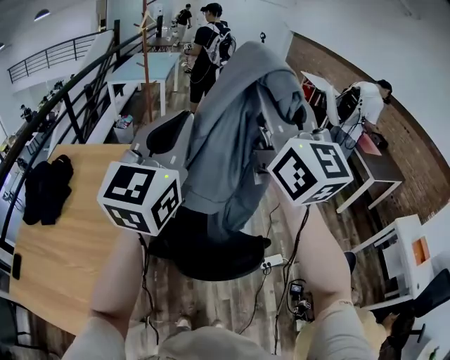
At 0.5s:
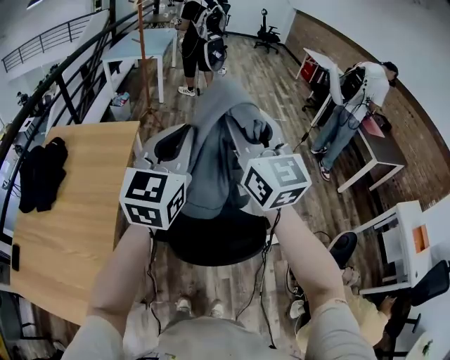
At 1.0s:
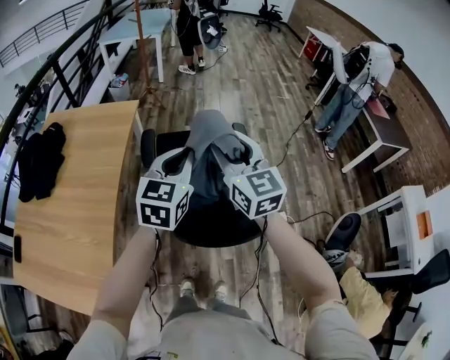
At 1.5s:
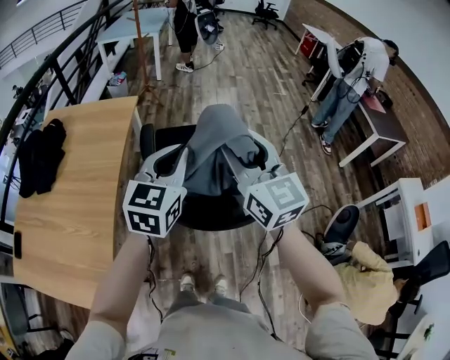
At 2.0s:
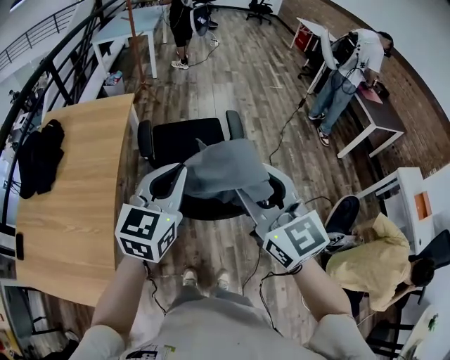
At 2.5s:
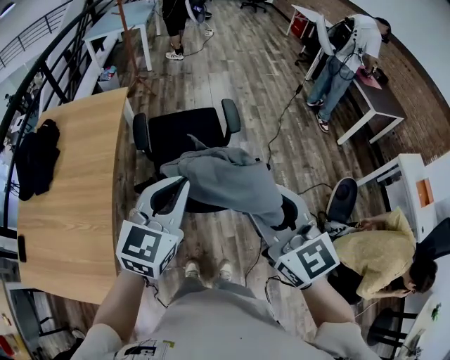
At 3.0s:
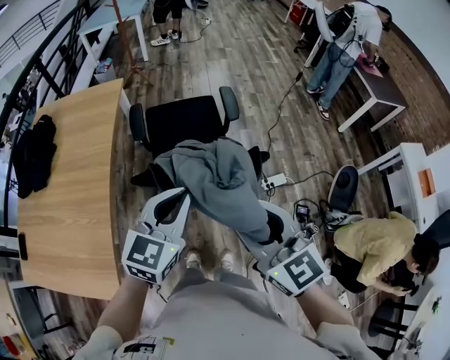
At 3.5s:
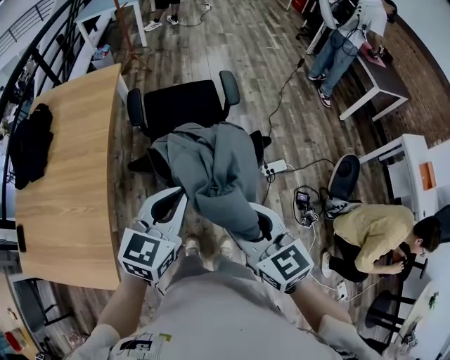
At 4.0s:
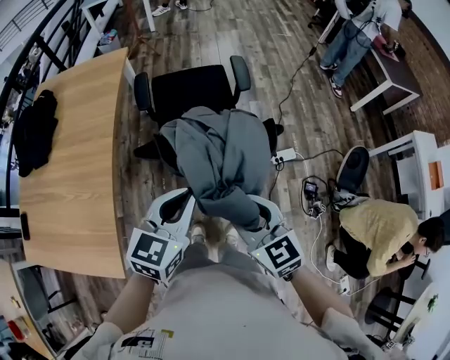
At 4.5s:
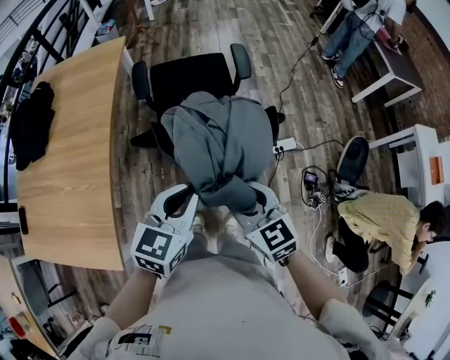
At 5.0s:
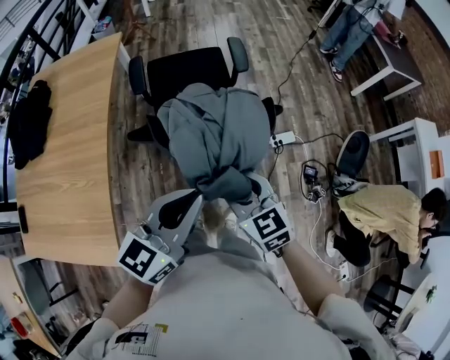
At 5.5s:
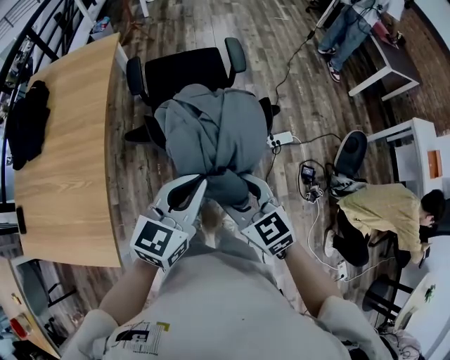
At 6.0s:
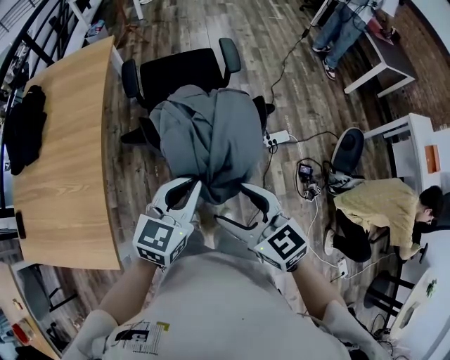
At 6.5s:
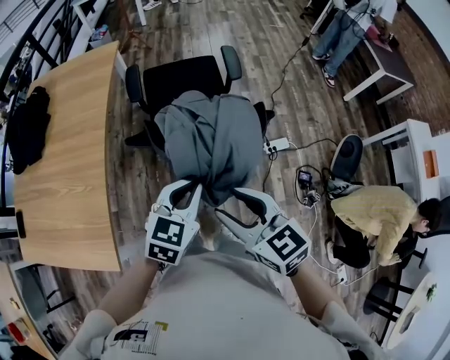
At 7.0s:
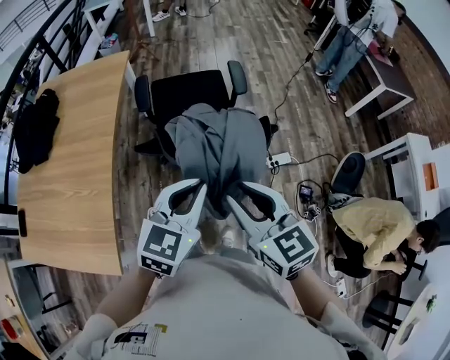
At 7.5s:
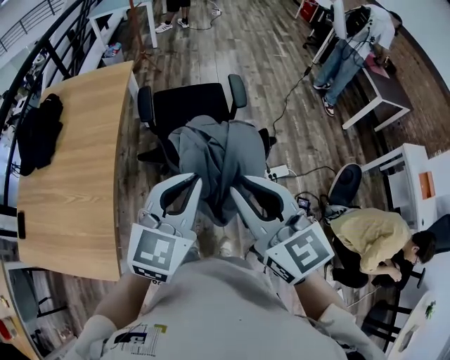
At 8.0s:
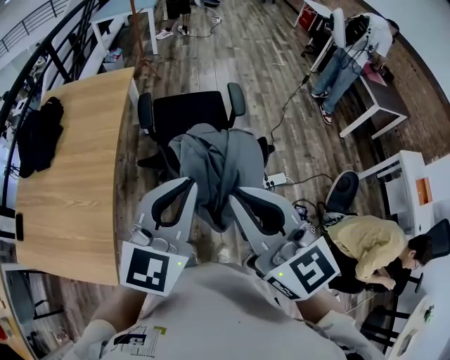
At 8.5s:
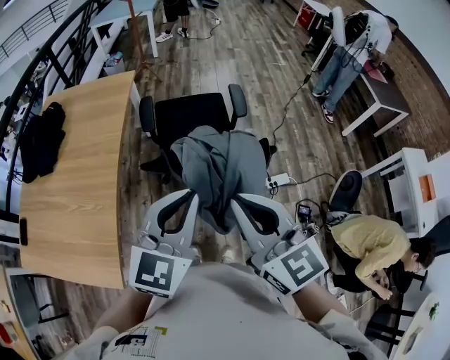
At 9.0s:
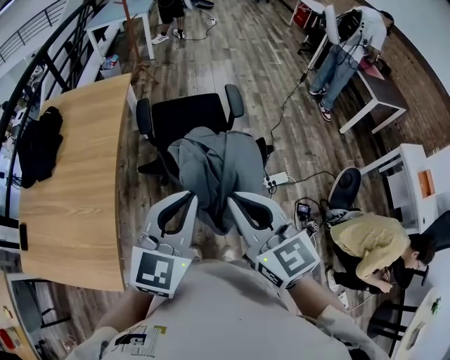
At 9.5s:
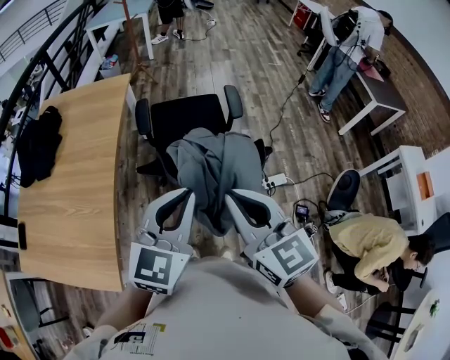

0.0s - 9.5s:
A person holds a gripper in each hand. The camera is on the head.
0.0s - 2.0s: Both grippers travel together downward and backward, approximately 30 cm. The left gripper changes its angle by approximately 30 degrees. Meanwhile the right gripper swivels about 30 degrees.
2.0s - 4.0s: The two grippers go roughly 20 cm downward and backward. The right gripper changes its angle by about 20 degrees.
4.0s - 5.5s: There are only small adjustments of the grippers.
5.5s - 7.5s: The left gripper is displaced upward by about 10 cm, while the right gripper travels upward by some 20 cm, and closes its fingers.
7.5s - 9.5s: The grippers move only a little.

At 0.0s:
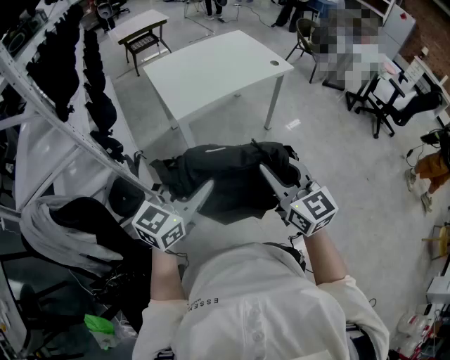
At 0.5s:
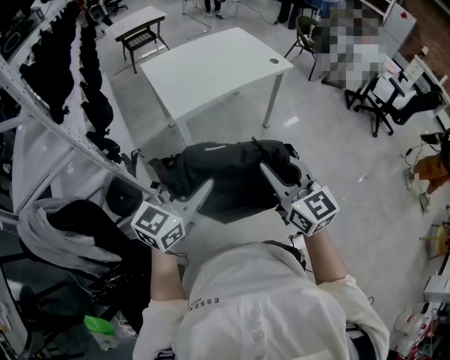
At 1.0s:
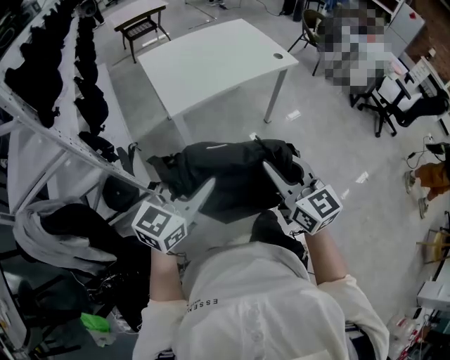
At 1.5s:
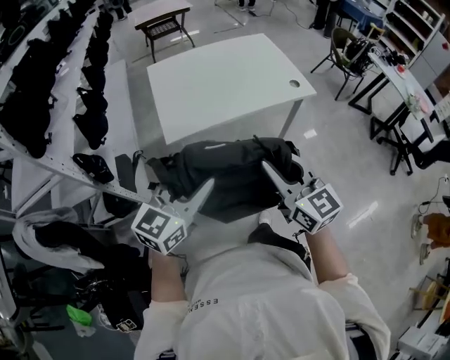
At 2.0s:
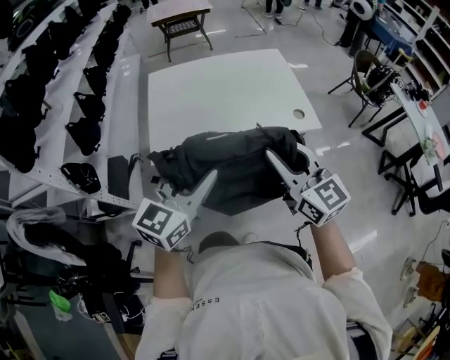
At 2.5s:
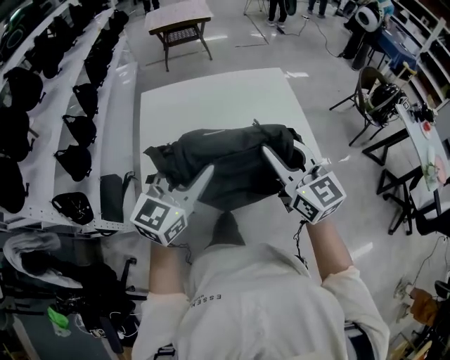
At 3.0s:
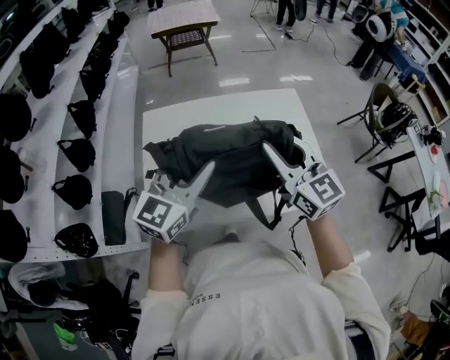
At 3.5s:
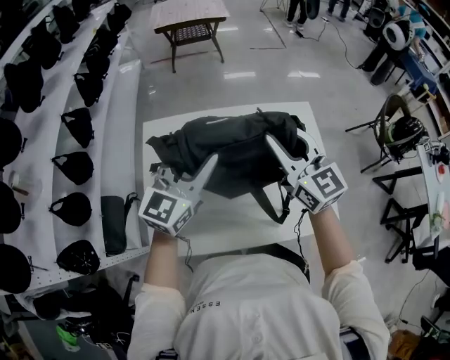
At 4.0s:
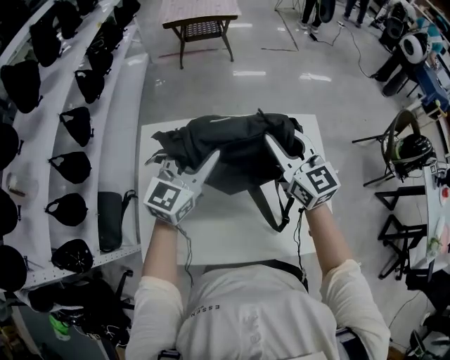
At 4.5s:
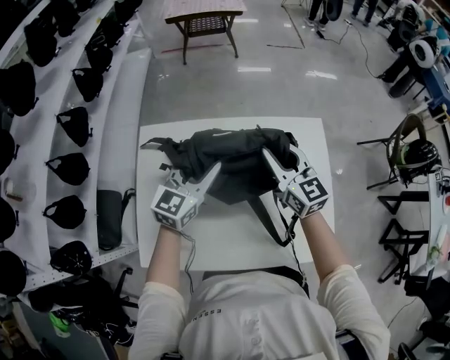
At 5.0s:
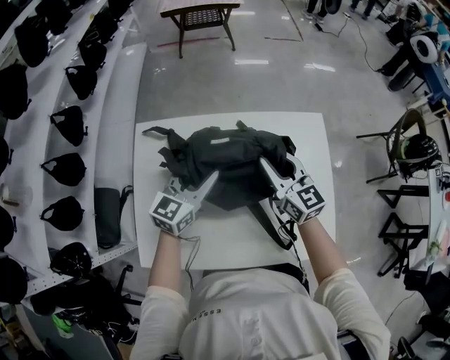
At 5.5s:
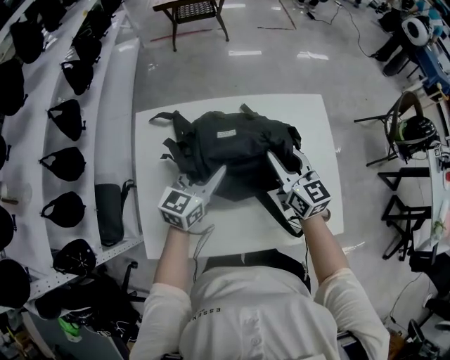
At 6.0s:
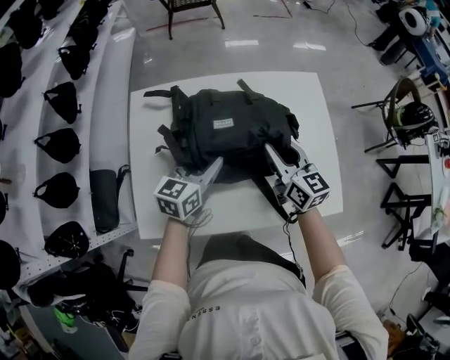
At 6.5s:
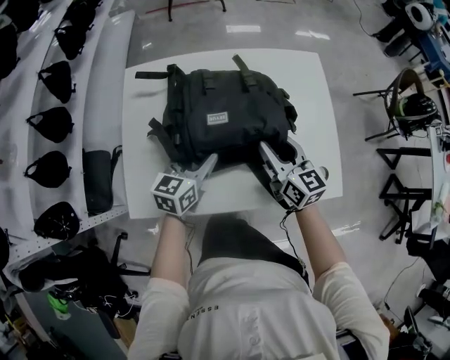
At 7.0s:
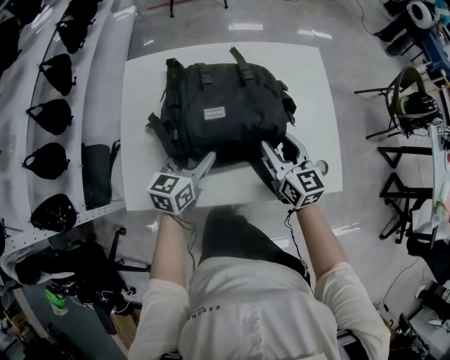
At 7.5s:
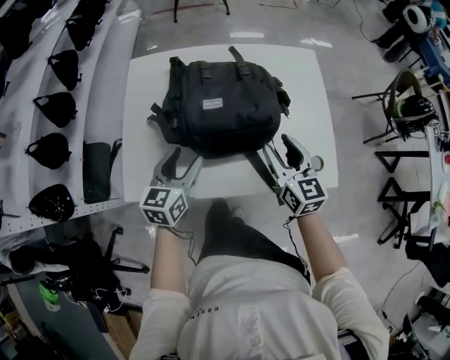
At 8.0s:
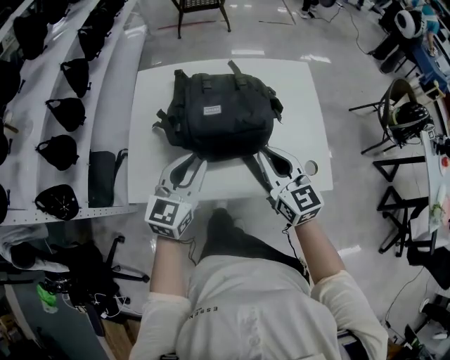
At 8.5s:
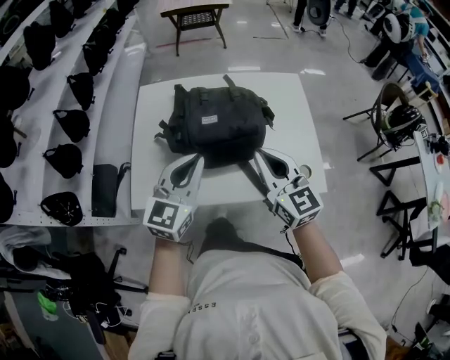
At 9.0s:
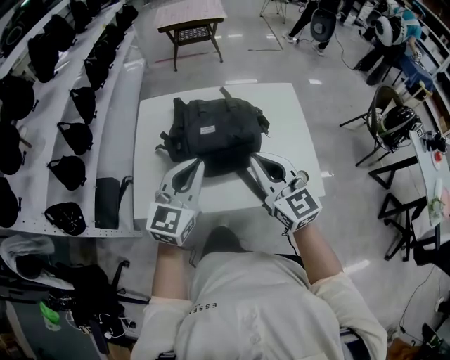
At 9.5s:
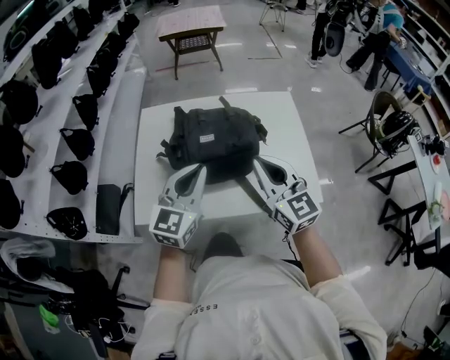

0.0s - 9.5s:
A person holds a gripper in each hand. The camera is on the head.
0.0s - 2.0s: The left gripper travels forward and to the right by some 35 cm, and changes its angle by some 20 degrees, while the right gripper is displaced forward by some 40 cm, and swivels roughly 20 degrees.
2.0s - 4.0s: Both grippers are carried forward, about 60 cm.
4.0s - 5.5s: The grippers both shift downward by some 15 cm.
5.5s - 7.5s: The grippers both shift backward by roughly 20 cm.
7.5s - 9.5s: Both grippers travel together upward, roughly 15 cm. The left gripper turns by some 30 degrees, and closes up. Meanwhile the right gripper closes its fingers.

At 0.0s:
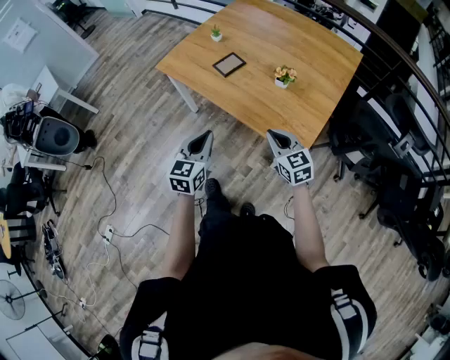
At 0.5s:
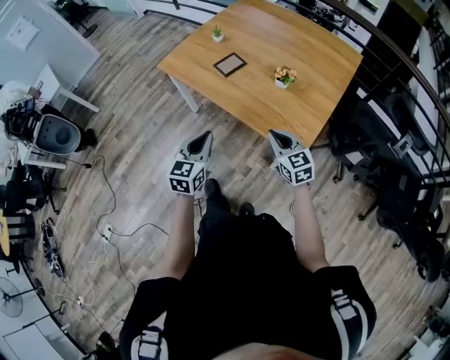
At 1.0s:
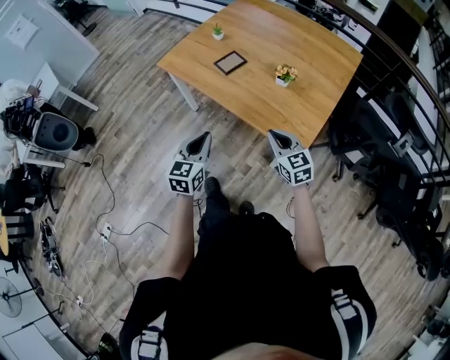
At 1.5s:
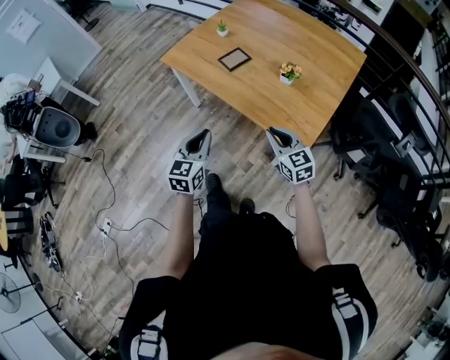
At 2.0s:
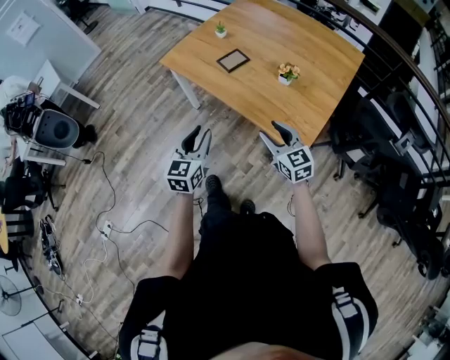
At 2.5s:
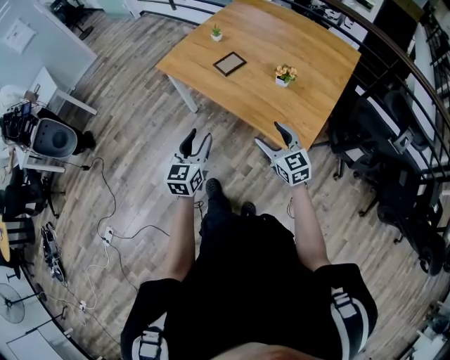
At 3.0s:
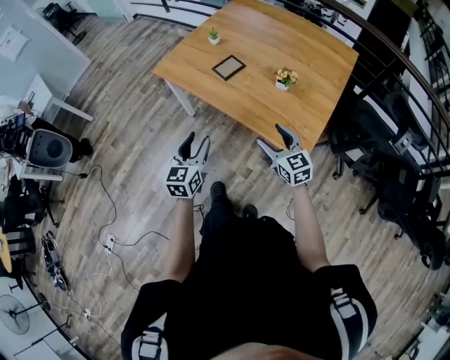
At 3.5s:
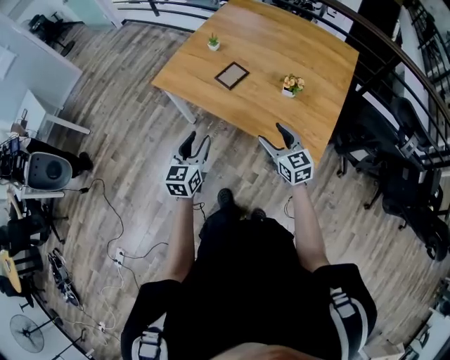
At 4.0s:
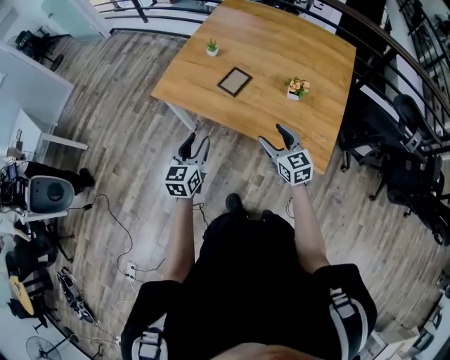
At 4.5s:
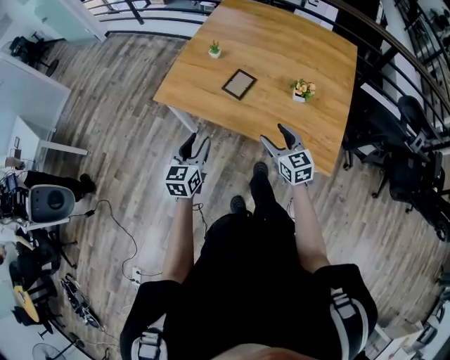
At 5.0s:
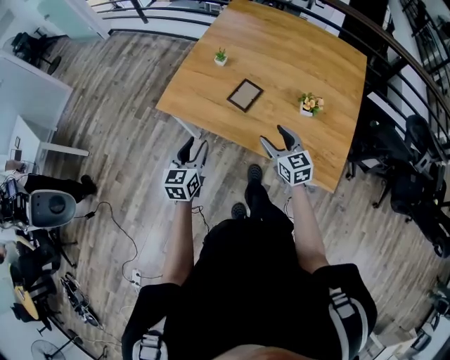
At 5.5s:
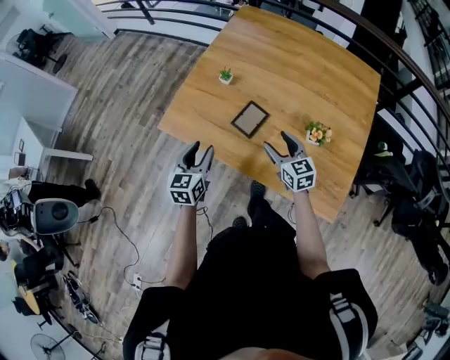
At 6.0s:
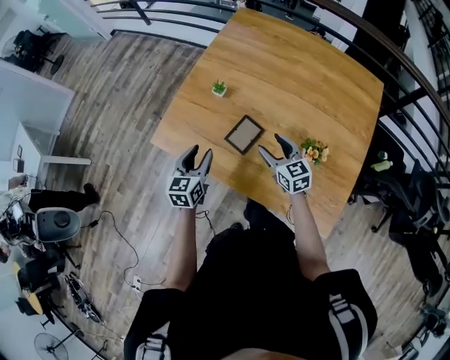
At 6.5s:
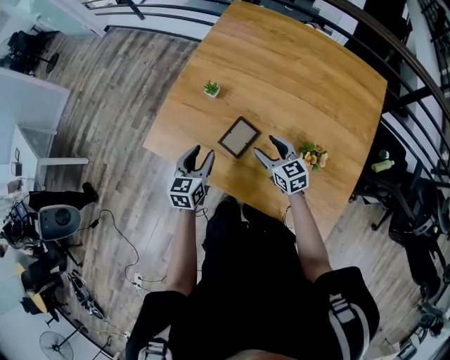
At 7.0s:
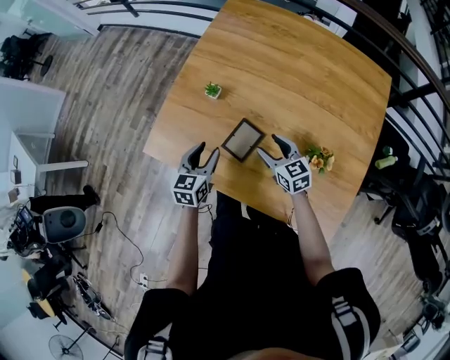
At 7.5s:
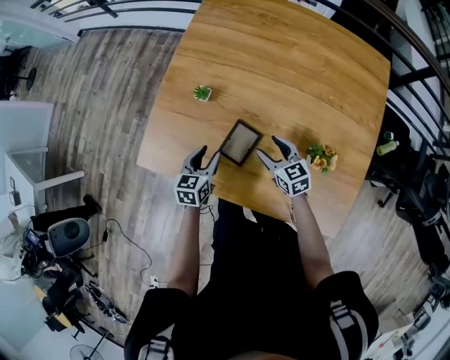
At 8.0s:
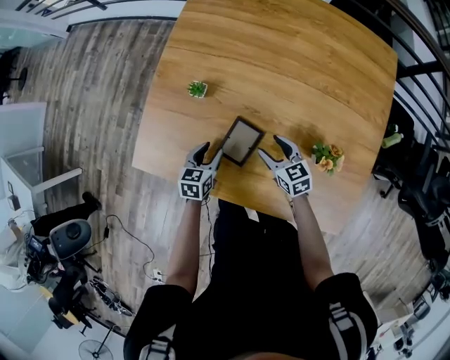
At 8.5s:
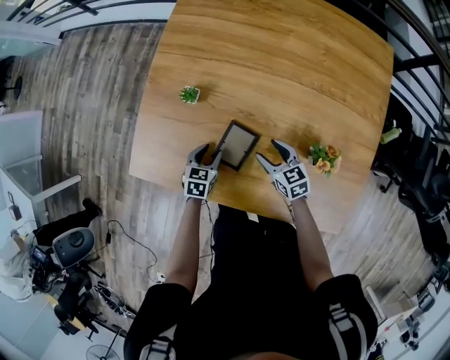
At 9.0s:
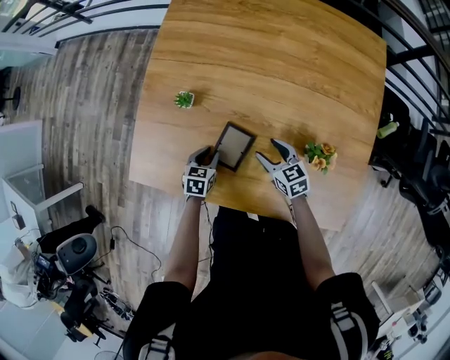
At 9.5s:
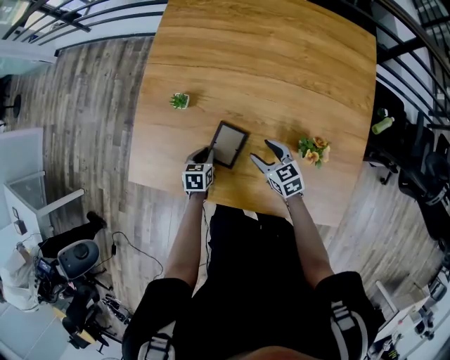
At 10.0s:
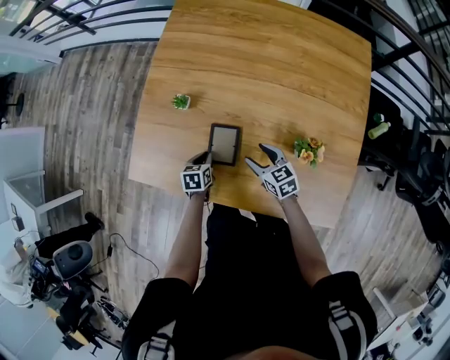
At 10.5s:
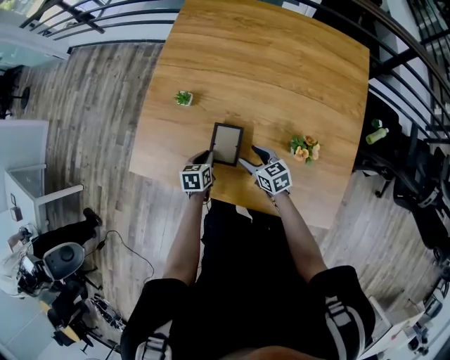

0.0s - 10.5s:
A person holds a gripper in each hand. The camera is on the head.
0.0s - 2.0s: The left gripper opens up. Meanwhile the right gripper opens.
2.0s - 4.0s: Both grippers move forward and to the left, roughly 20 cm.
4.0s - 6.5s: The grippers both shift forward by about 30 cm.
6.5s - 8.5s: The right gripper heads downward, covering about 10 cm. The left gripper heads downward, covering roughly 20 cm, and changes its angle by some 30 degrees.
8.5s - 10.5s: The left gripper closes its fingers.
